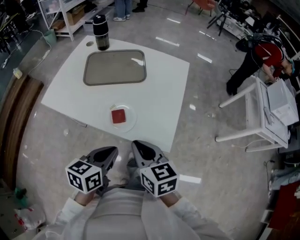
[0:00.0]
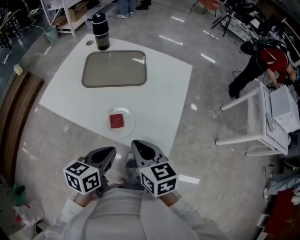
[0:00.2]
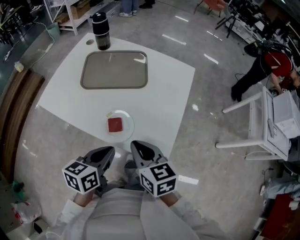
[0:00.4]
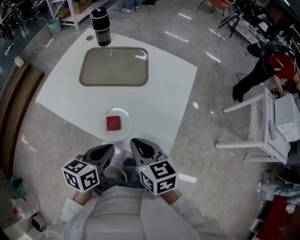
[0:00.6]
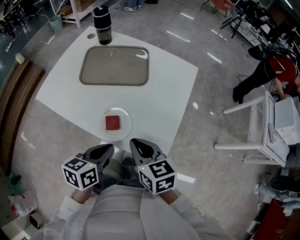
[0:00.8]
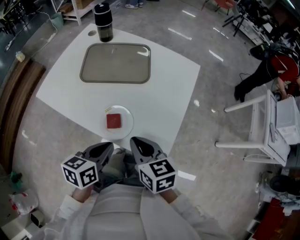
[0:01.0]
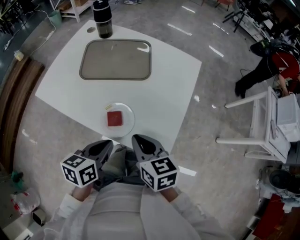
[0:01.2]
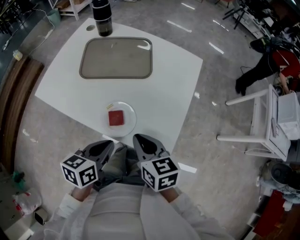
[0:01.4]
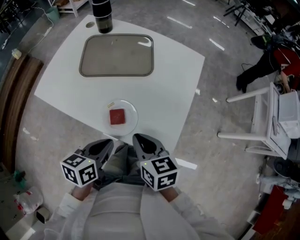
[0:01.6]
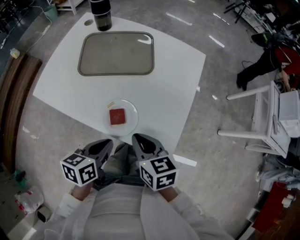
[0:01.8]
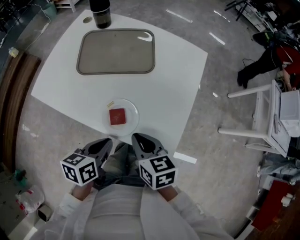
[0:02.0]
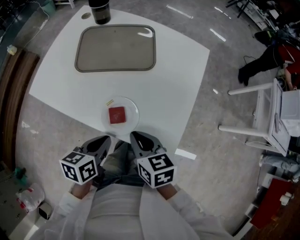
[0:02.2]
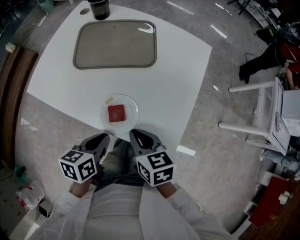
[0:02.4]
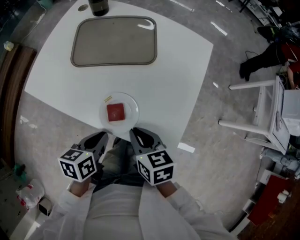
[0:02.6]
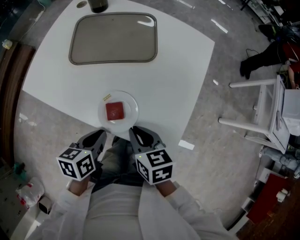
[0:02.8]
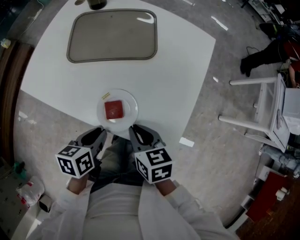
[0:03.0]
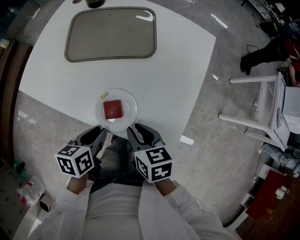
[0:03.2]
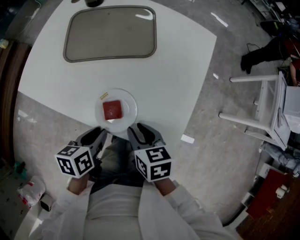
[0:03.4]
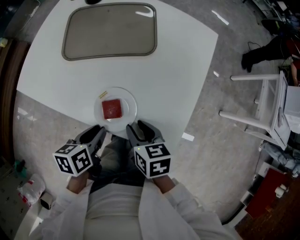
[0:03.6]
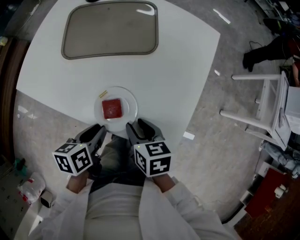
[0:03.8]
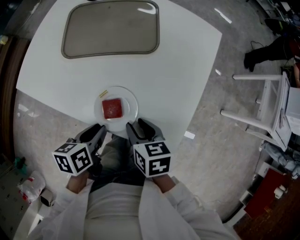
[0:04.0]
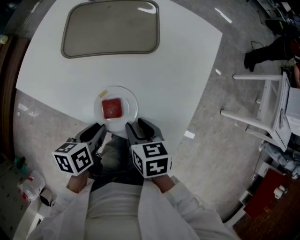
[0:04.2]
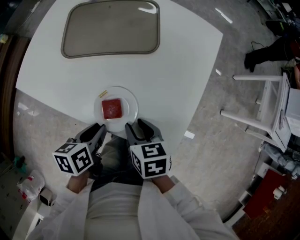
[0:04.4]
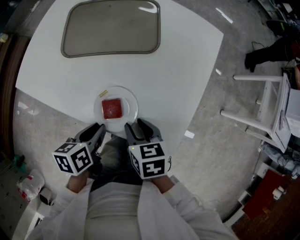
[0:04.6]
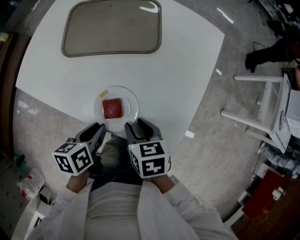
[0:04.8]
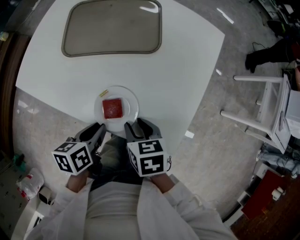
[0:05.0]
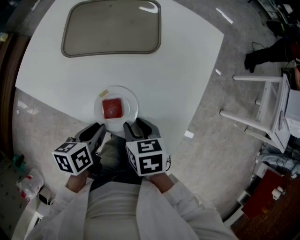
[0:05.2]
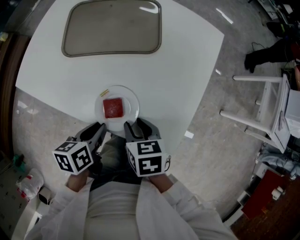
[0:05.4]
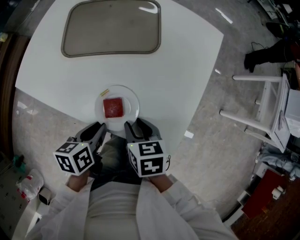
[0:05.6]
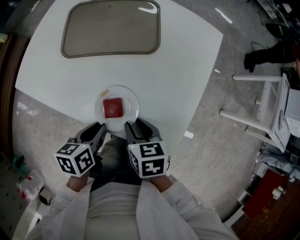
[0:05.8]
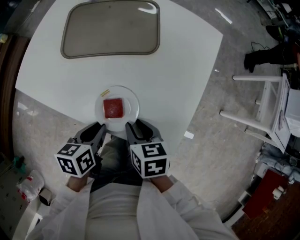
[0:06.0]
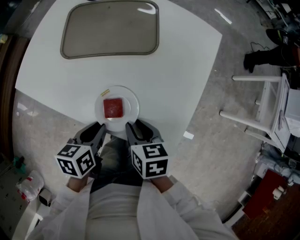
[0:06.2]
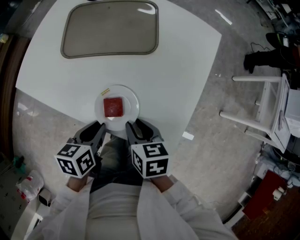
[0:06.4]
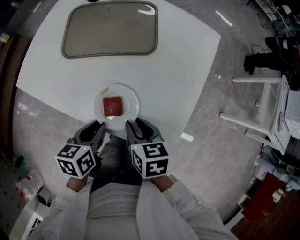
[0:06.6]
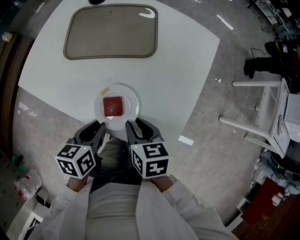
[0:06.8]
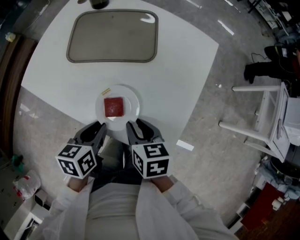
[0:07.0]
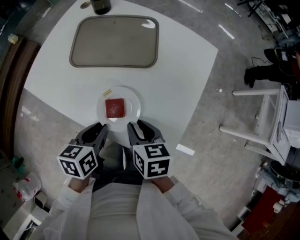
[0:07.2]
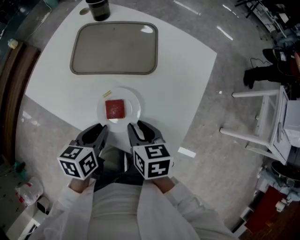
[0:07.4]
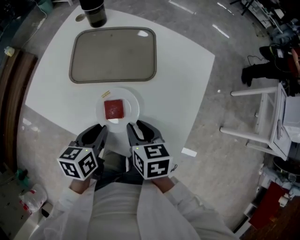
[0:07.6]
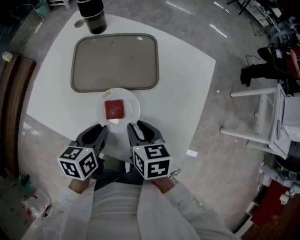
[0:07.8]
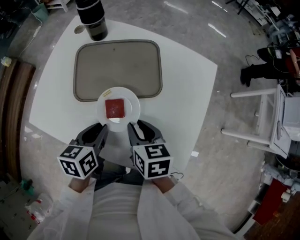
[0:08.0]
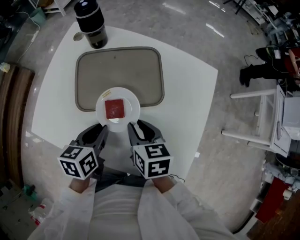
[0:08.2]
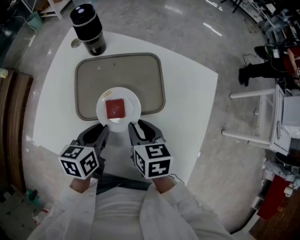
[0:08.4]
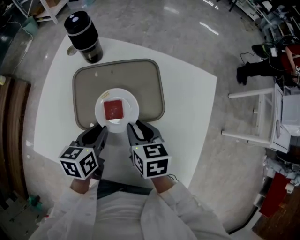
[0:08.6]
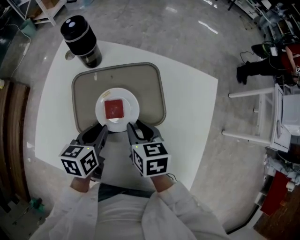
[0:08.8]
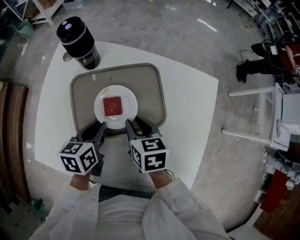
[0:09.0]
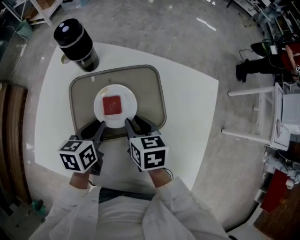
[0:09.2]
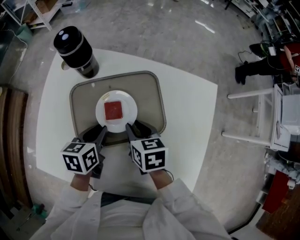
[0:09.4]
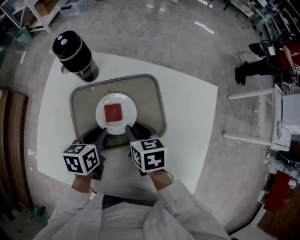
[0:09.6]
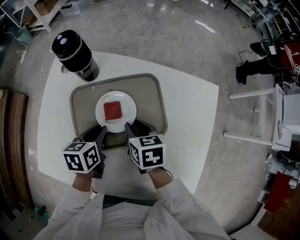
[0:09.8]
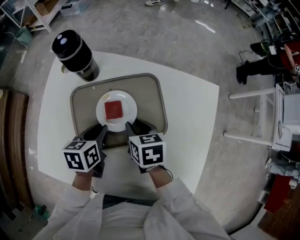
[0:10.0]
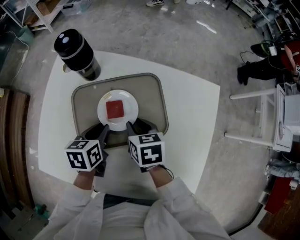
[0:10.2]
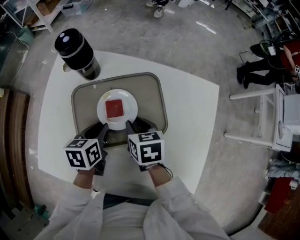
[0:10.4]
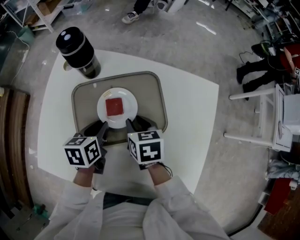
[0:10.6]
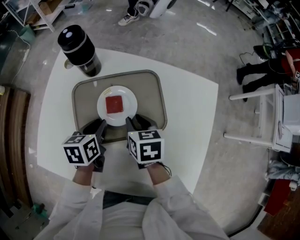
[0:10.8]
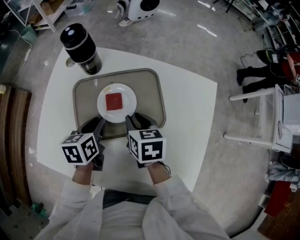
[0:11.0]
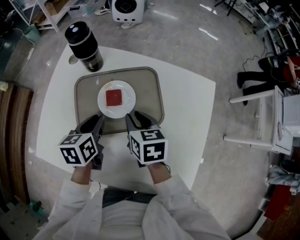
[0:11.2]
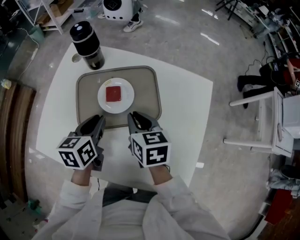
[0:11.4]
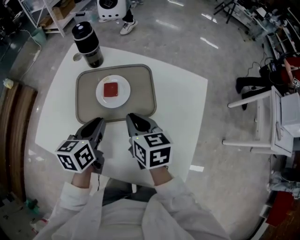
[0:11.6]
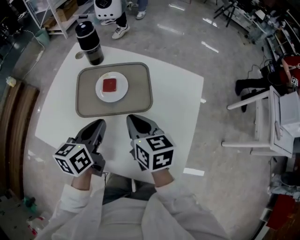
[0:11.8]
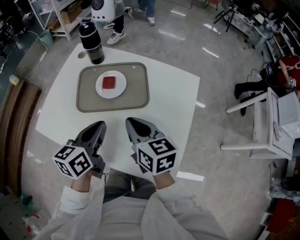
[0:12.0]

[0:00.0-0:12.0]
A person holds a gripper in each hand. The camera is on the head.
0:00.0 to 0:01.6: The right gripper is displaced forward and downward by about 10 cm. Meanwhile the left gripper shifts some 5 cm forward.
0:01.6 to 0:03.0: The grippers both shift downward by some 10 cm.
0:03.0 to 0:04.4: The right gripper opens its fingers.
0:04.4 to 0:06.0: The grippers move only a little.
0:06.0 to 0:07.6: The grippers both shift forward by roughly 5 cm.
0:07.6 to 0:09.0: The two grippers go approximately 20 cm forward.
0:09.0 to 0:10.4: The grippers make only small movements.
0:10.4 to 0:12.0: The right gripper heads backward and upward, covering roughly 20 cm, rotates about 30 degrees, and closes up. Meanwhile the left gripper is displaced backward, upward and to the right by roughly 25 cm, and swivels about 30 degrees.

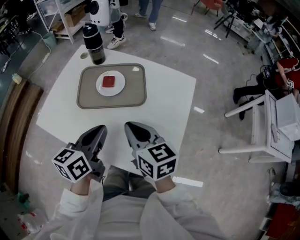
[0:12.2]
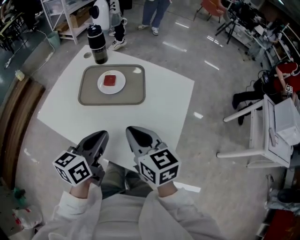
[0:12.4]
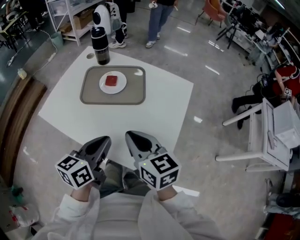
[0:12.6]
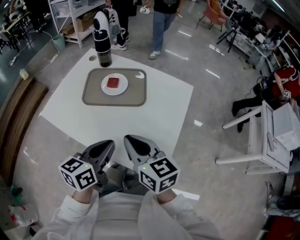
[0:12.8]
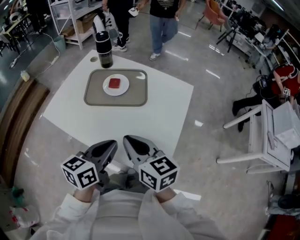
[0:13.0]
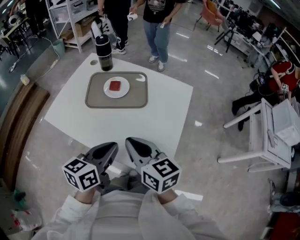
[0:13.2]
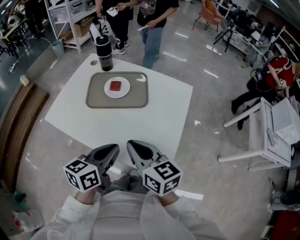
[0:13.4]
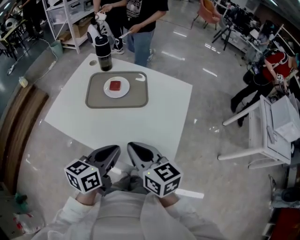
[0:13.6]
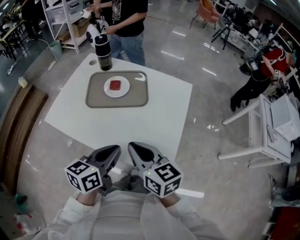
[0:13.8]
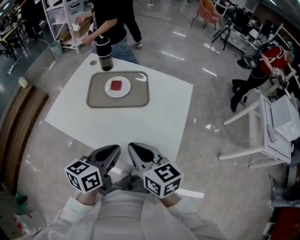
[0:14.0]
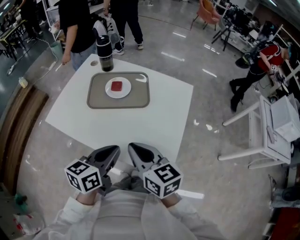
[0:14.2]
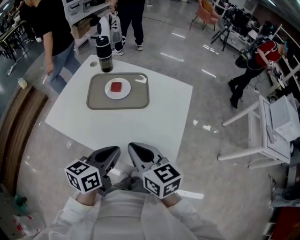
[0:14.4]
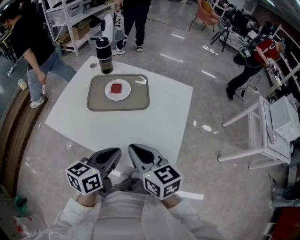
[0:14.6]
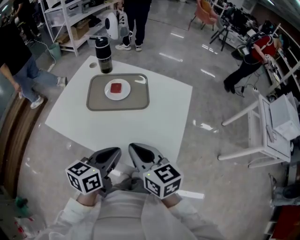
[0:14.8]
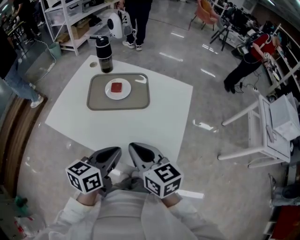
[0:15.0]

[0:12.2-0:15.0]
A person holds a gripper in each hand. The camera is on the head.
0:12.2 to 0:13.6: The grippers both shift backward by roughly 10 cm.
0:13.6 to 0:15.0: Both grippers stay about where they are.

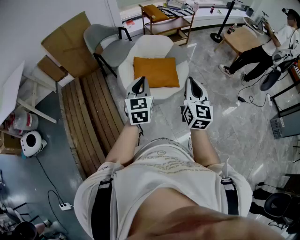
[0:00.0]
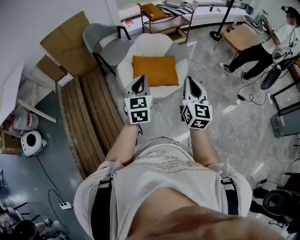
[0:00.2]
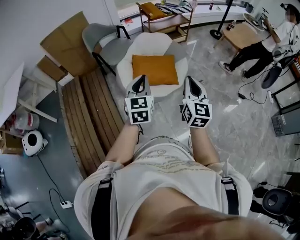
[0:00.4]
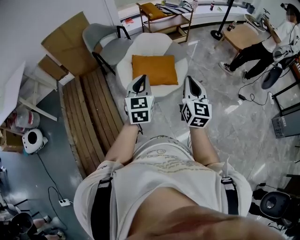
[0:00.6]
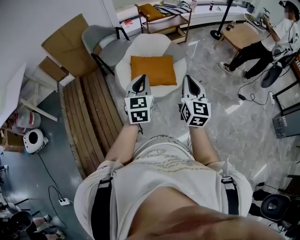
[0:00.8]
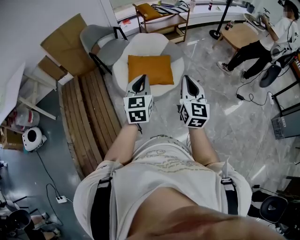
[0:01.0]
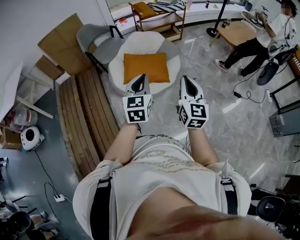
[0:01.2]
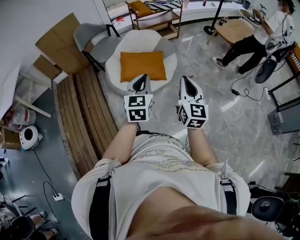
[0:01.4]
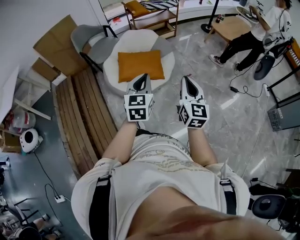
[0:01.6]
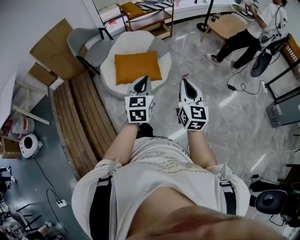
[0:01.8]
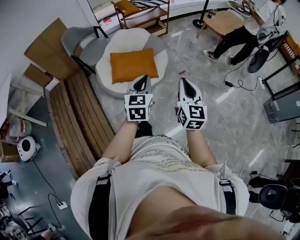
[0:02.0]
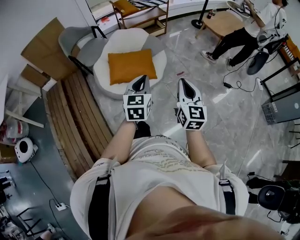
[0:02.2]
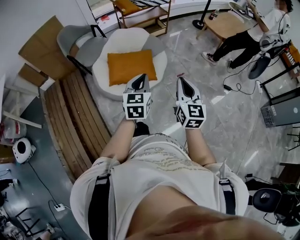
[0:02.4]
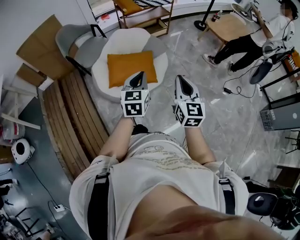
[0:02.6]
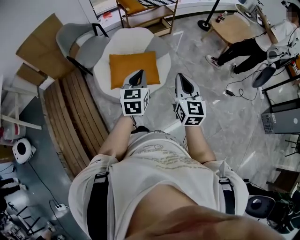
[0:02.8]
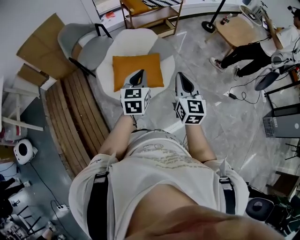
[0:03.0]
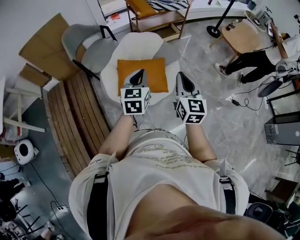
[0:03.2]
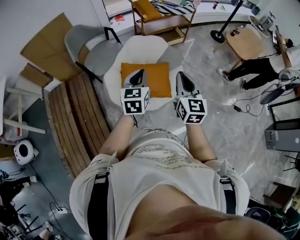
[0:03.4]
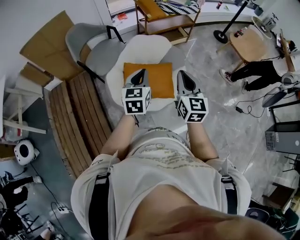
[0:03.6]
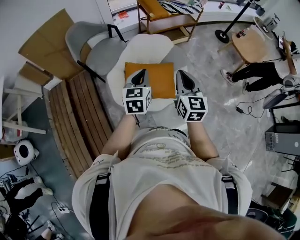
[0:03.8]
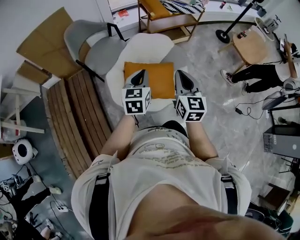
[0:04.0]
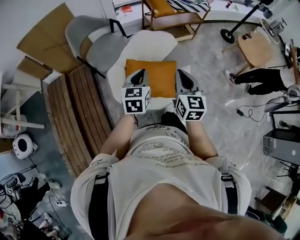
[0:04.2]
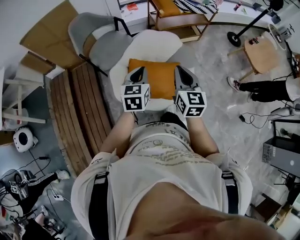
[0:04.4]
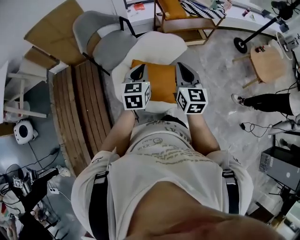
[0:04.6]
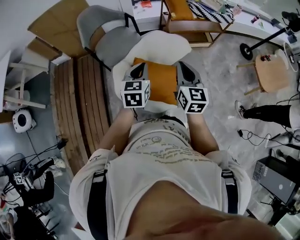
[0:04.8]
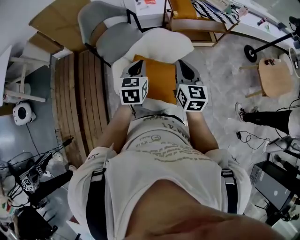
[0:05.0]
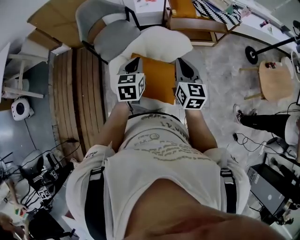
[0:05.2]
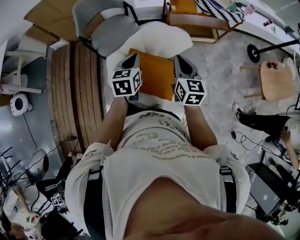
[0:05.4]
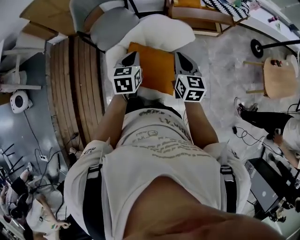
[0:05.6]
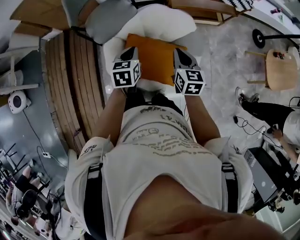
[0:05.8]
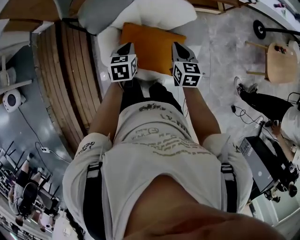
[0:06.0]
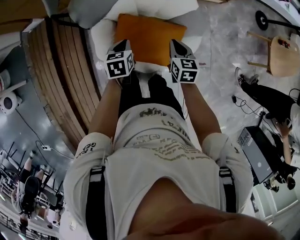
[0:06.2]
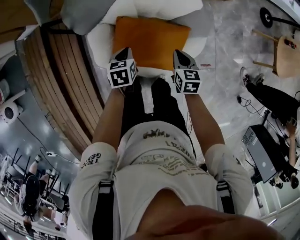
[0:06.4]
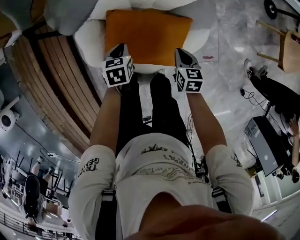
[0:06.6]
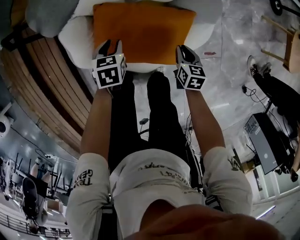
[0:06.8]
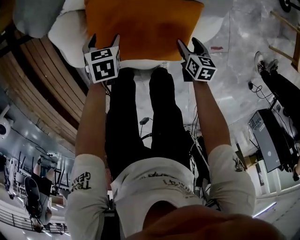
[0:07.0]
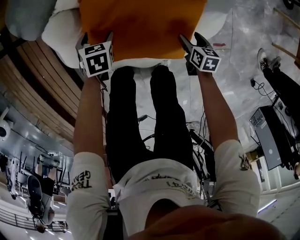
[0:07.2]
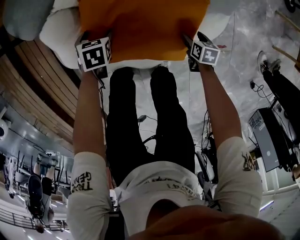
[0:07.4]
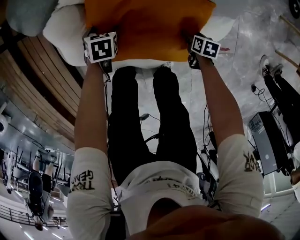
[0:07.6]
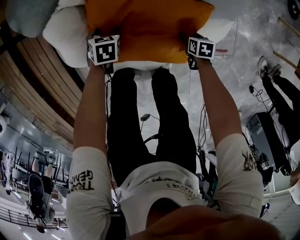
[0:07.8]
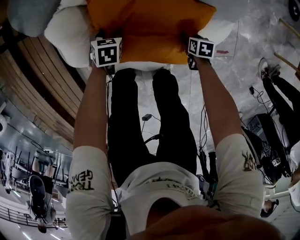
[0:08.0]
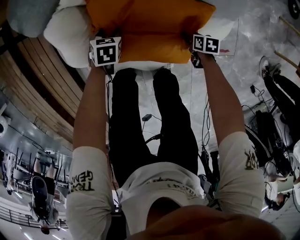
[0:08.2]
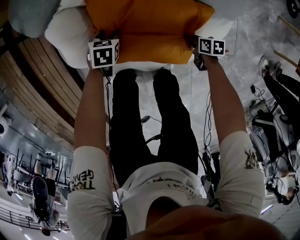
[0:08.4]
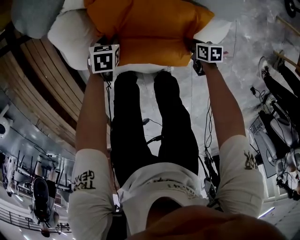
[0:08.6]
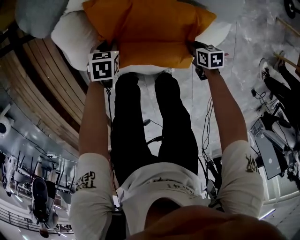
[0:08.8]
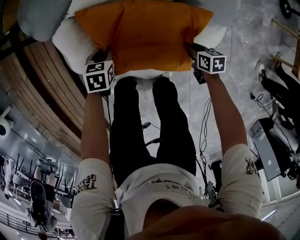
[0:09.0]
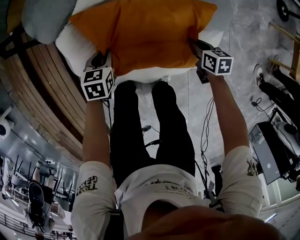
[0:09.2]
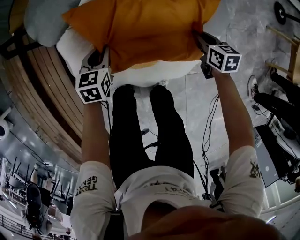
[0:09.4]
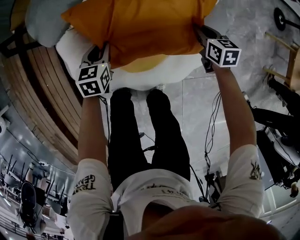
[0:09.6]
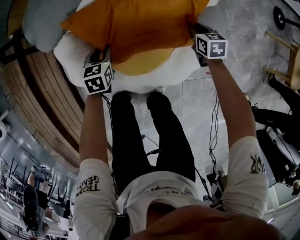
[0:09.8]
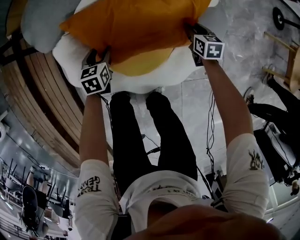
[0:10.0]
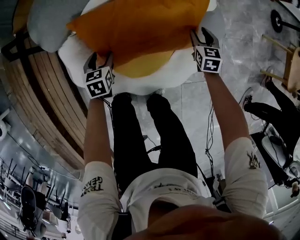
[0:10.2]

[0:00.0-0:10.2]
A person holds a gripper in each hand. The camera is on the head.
0:00.0 to 0:01.4: Both grippers travel together to the right, approximately 15 cm.
0:01.4 to 0:03.0: The two grippers go approximately 20 cm forward.
0:03.0 to 0:04.4: The two grippers go approximately 25 cm forward and to the left.
0:04.4 to 0:05.8: The grippers both shift forward and downward by approximately 20 cm. The right gripper changes its angle by about 20 degrees. The left gripper rotates approximately 20 degrees.
0:05.8 to 0:07.2: Both grippers move downward, some 50 cm. The left gripper turns by about 30 degrees, and opens up. Meanwhile the right gripper turns by some 30 degrees, and opens up.
0:07.2 to 0:08.8: The left gripper closes up. The right gripper travels downward and back again, roughly 10 cm each way, and closes.
0:08.8 to 0:10.2: The right gripper shifts about 25 cm forward, upward and to the right, swivels some 40 degrees, and opens its fingers; the left gripper goes approximately 10 cm forward and upward, rotates about 20 degrees, and opens up.
